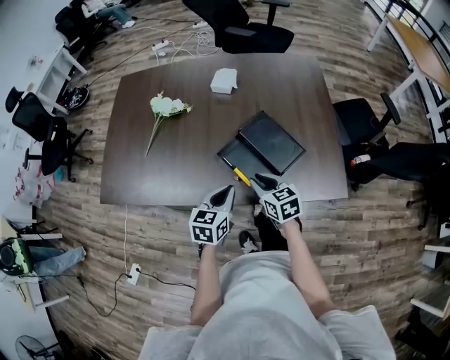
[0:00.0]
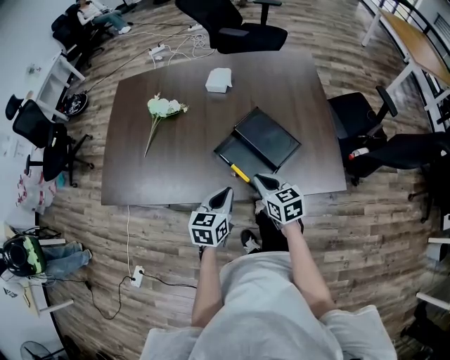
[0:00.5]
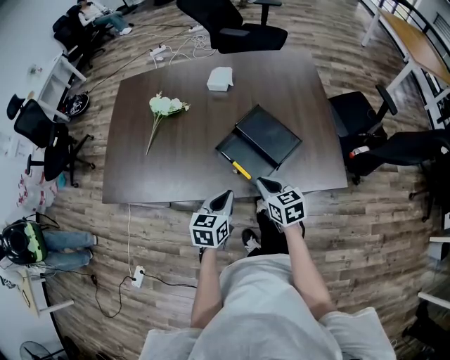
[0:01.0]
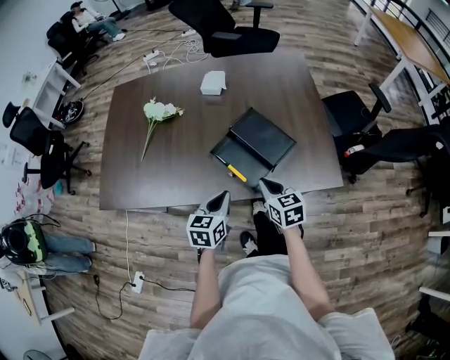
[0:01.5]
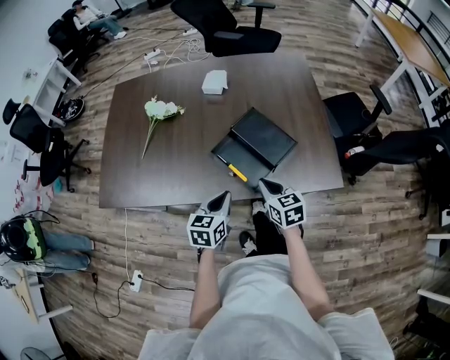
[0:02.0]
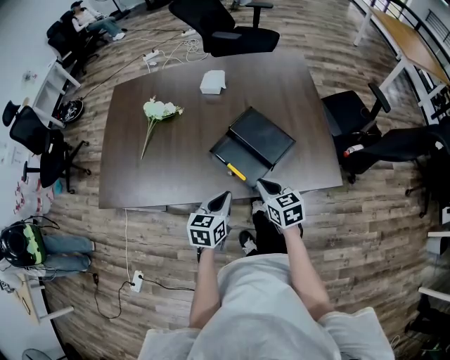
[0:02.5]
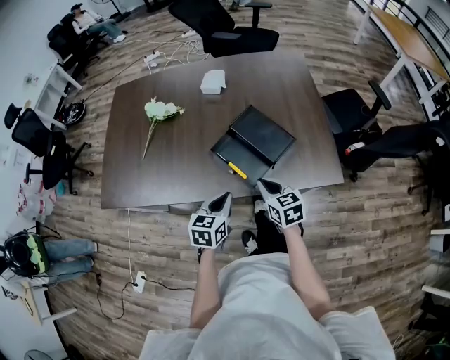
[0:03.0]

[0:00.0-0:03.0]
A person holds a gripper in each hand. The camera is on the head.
0:00.0 to 0:01.5: The right gripper changes place by some 5 cm.
0:01.5 to 0:03.0: There are only small adjustments of the grippers.

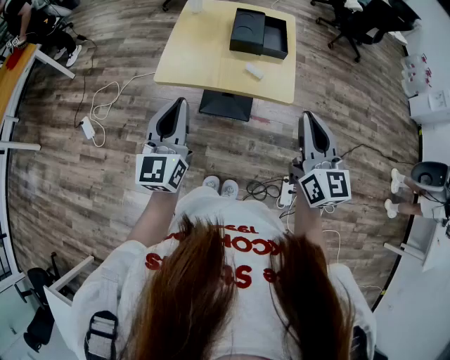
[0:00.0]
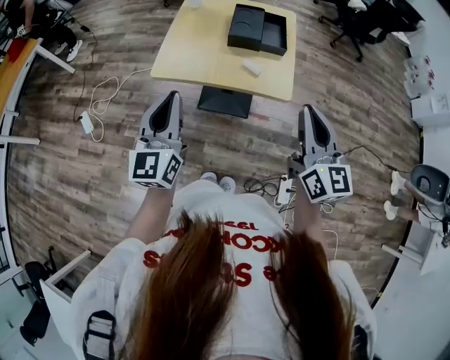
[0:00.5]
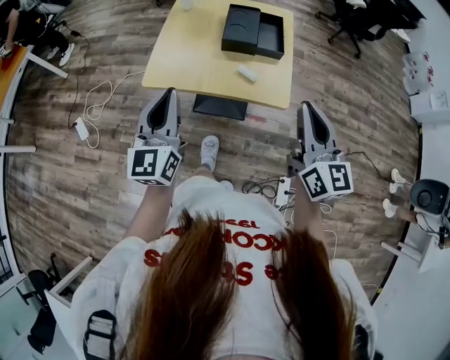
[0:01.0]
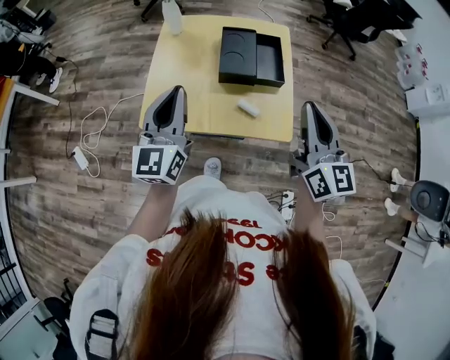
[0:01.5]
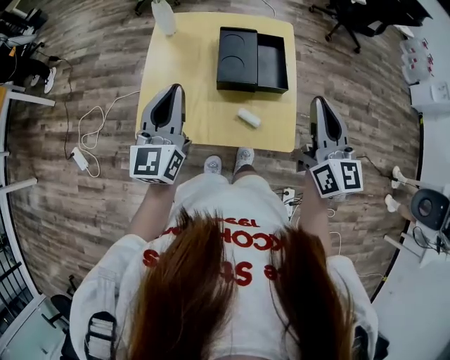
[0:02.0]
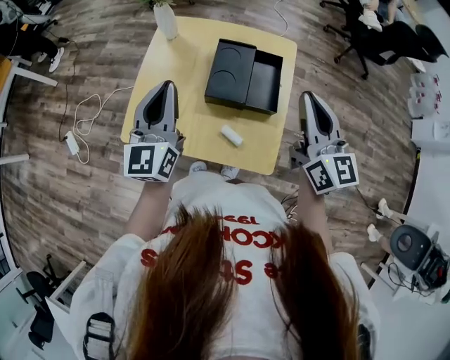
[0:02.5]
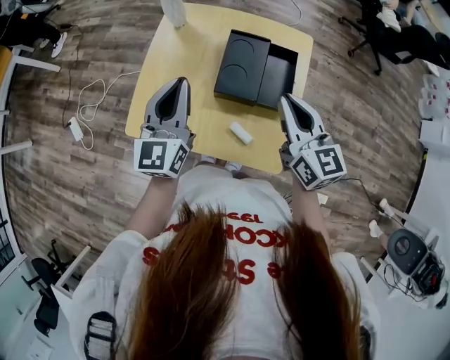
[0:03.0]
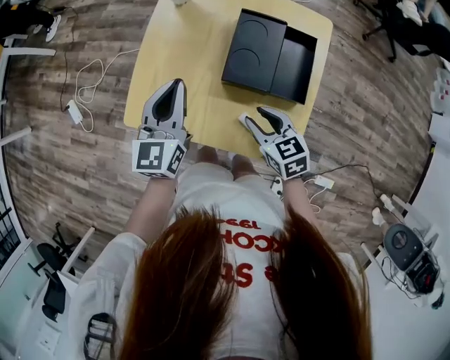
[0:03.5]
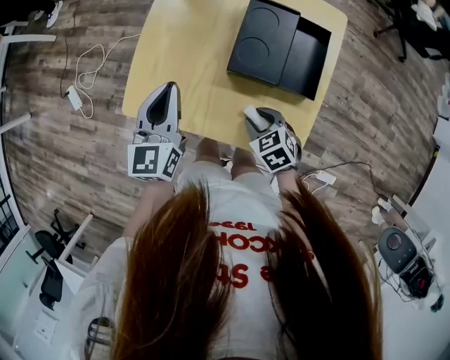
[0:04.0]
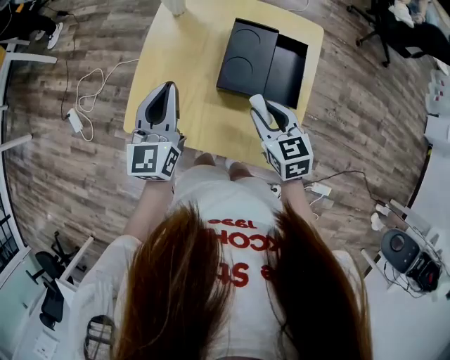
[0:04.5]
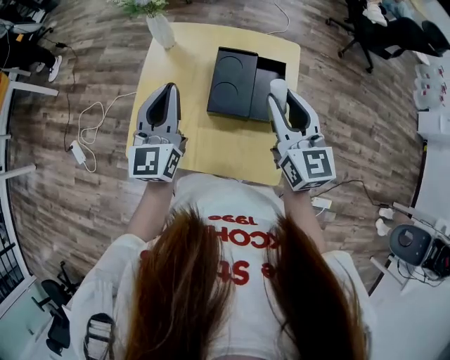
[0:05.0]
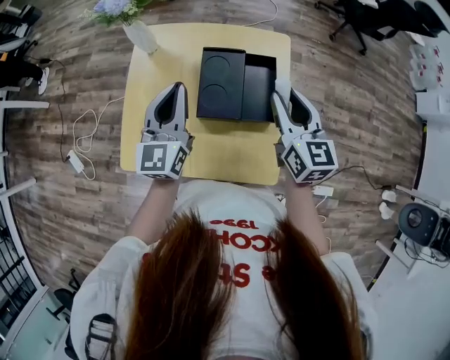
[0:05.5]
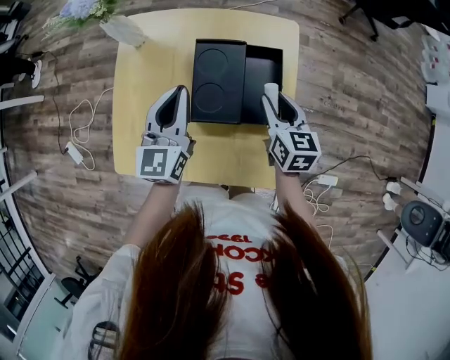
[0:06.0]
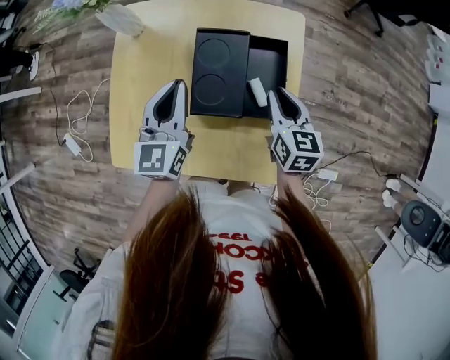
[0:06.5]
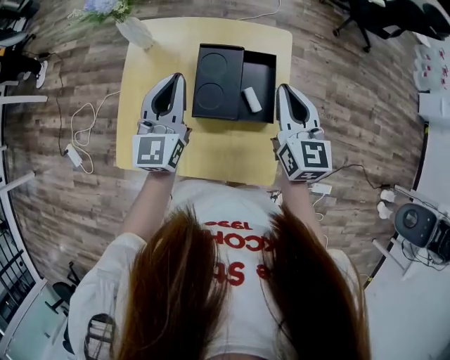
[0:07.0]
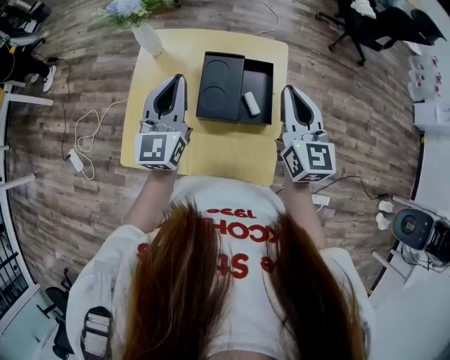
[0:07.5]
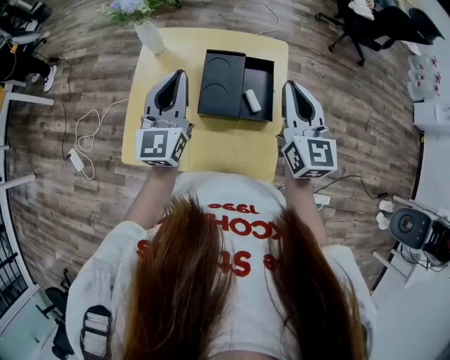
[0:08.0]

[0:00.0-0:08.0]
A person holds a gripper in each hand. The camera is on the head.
0:00.0 to 0:02.0: Both grippers move forward, roughly 25 cm.
0:02.0 to 0:04.0: The right gripper travels downward by about 35 cm, angles its fingers downward, by some 60 degrees, and opens, while the left gripper is displaced downward by approximately 10 cm, and turns by about 20 degrees.
0:04.0 to 0:06.0: The left gripper travels upward and back again, approximately 10 cm each way, while the right gripper moves approximately 20 cm, and changes its angle by about 50 degrees.
0:06.0 to 0:08.0: The left gripper moves upward, approximately 10 cm. The right gripper shifts some 20 cm upward, swivels some 30 degrees, and closes its fingers.

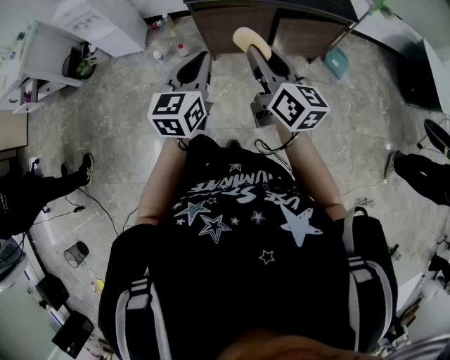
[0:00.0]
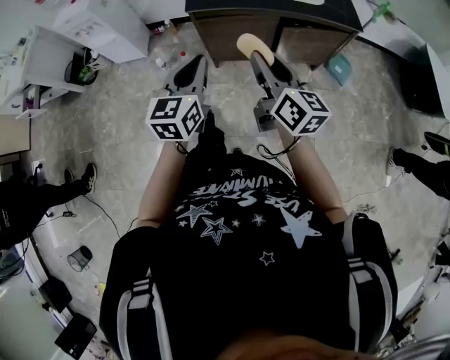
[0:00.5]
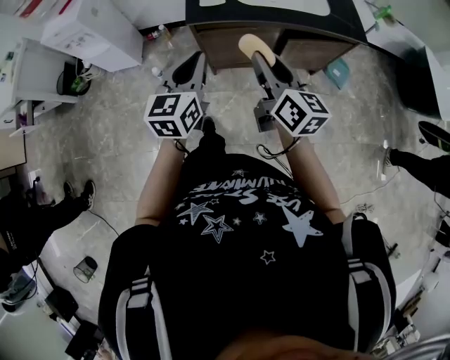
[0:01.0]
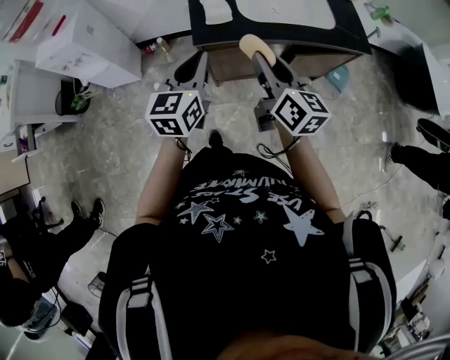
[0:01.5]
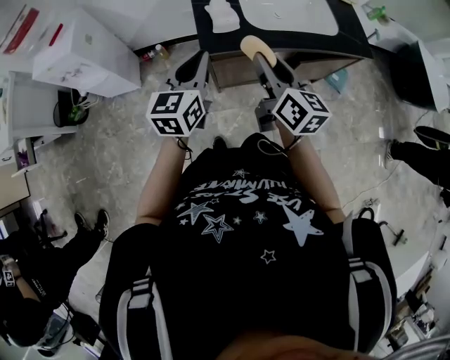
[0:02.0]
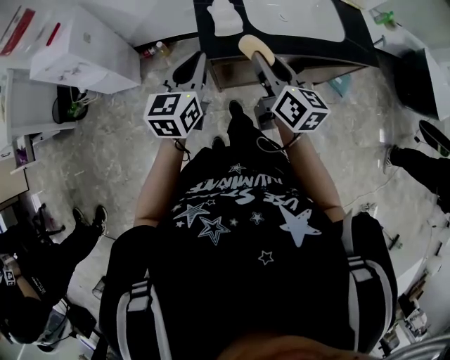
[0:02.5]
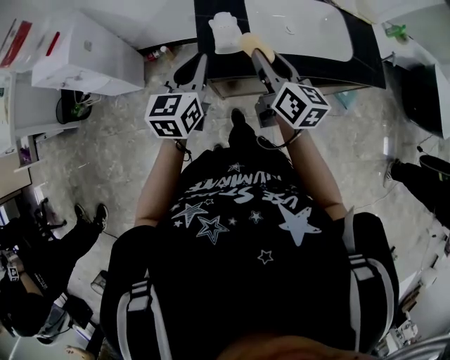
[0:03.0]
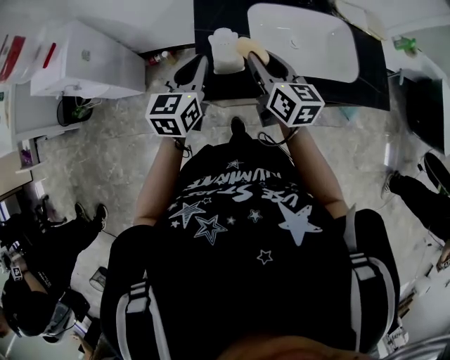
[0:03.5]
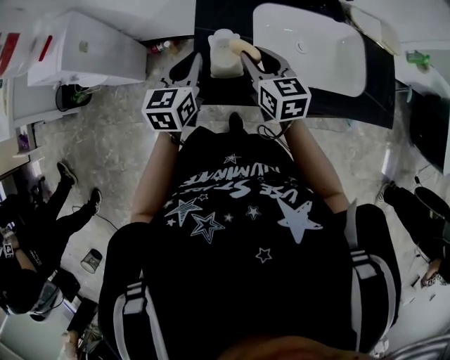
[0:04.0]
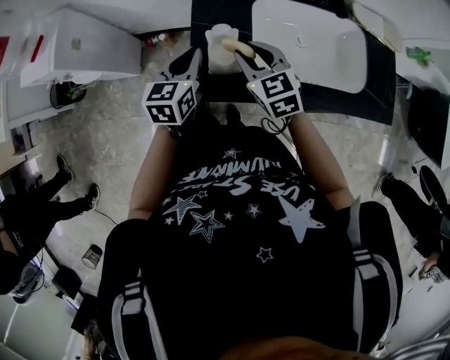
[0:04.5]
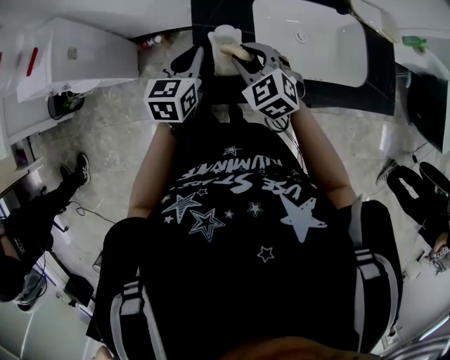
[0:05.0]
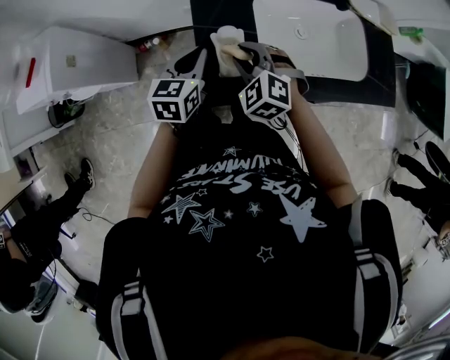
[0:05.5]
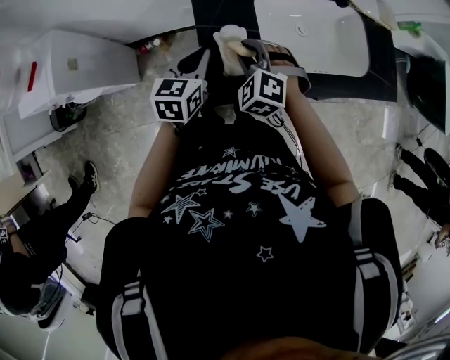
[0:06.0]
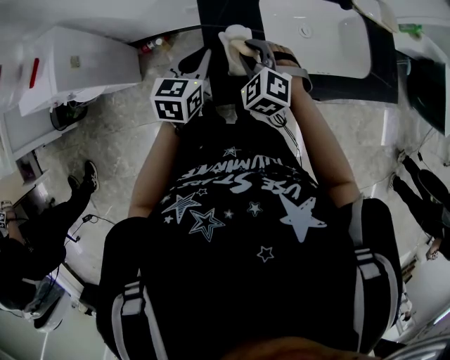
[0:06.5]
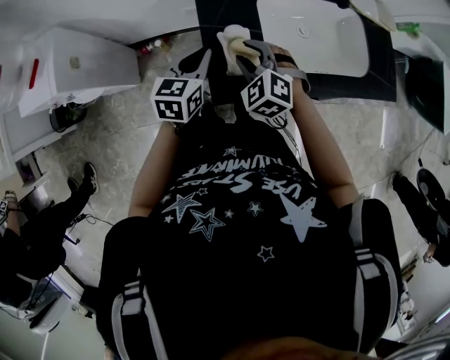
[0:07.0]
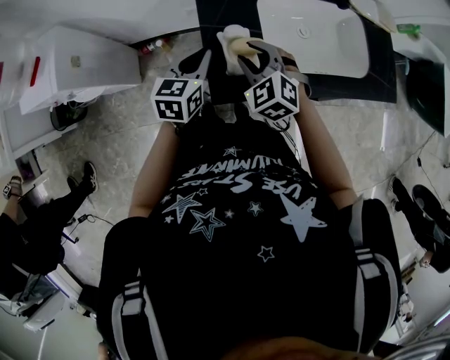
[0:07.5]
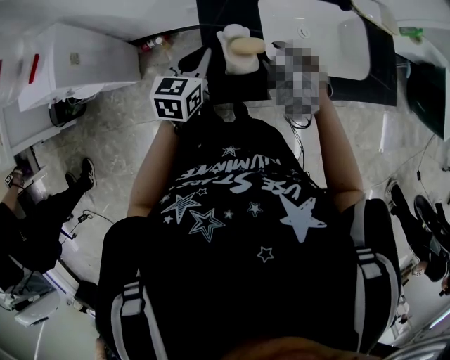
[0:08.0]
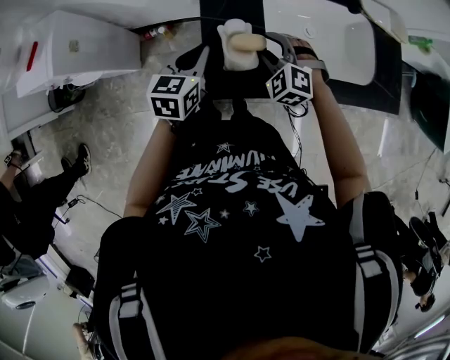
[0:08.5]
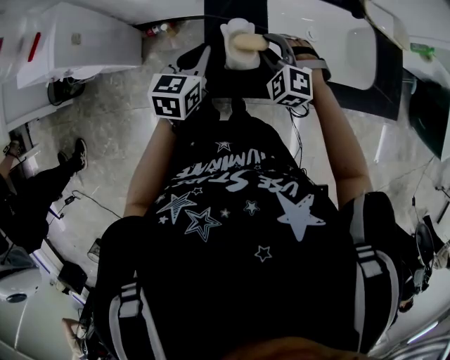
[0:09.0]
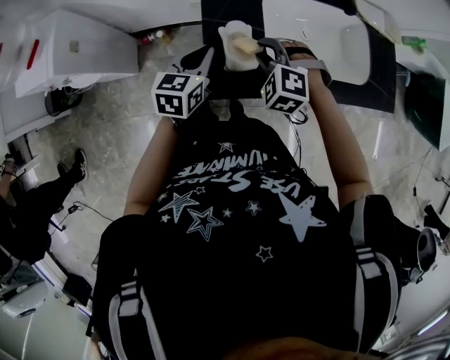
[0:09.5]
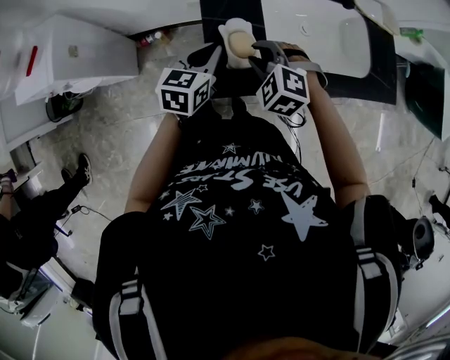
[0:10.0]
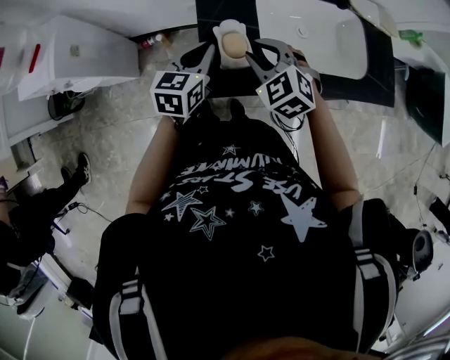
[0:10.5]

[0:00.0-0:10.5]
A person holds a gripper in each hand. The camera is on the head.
0:00.0 to 0:02.0: Both grippers move forward, approximately 25 cm.
0:02.0 to 0:04.0: The right gripper moves forward and downward, some 30 cm, and swivels approximately 30 degrees. The left gripper is displaced forward by roughly 20 cm.
0:04.0 to 0:06.5: The right gripper goes approximately 5 cm to the left, and rolls counterclockwise, seen from behind, by roughly 50 degrees.
0:06.5 to 0:08.5: The right gripper moves to the right, some 5 cm.
0:08.5 to 0:10.5: The right gripper heads upward, covering approximately 5 cm, and changes its angle by approximately 20 degrees.

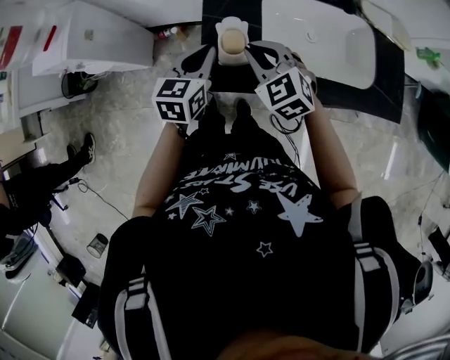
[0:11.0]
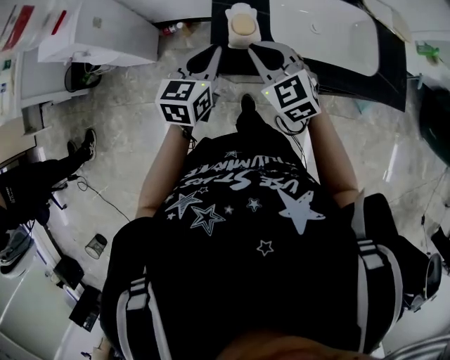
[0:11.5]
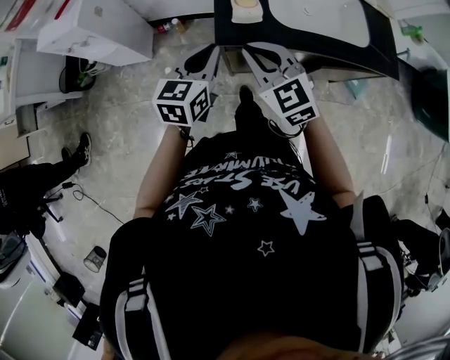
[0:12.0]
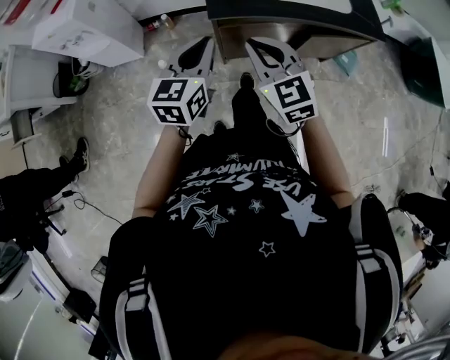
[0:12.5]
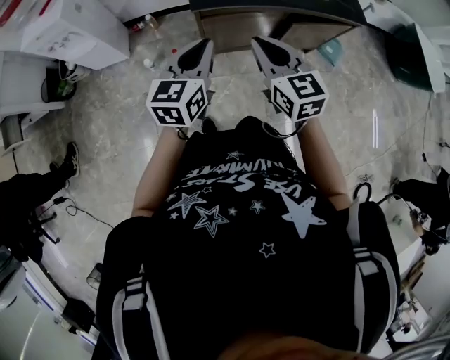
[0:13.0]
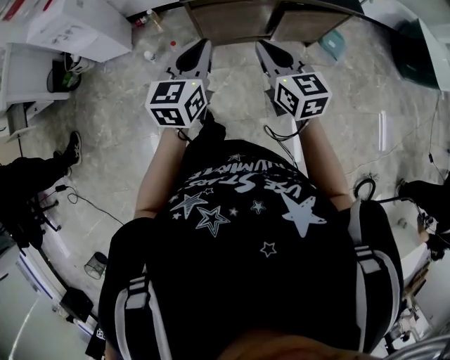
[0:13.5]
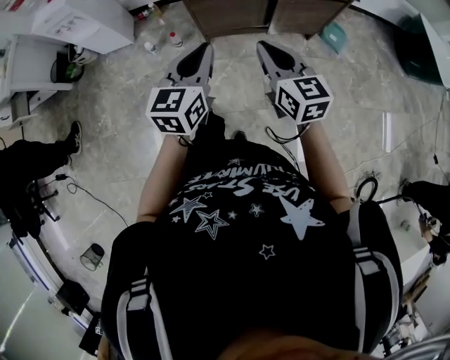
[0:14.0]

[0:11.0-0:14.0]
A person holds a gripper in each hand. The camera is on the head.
0:11.0 to 0:12.5: Both grippers travel together backward, roughly 25 cm.
0:12.5 to 0:14.0: The two grippers go approximately 25 cm backward and to the right. The right gripper turns by approximately 30 degrees.

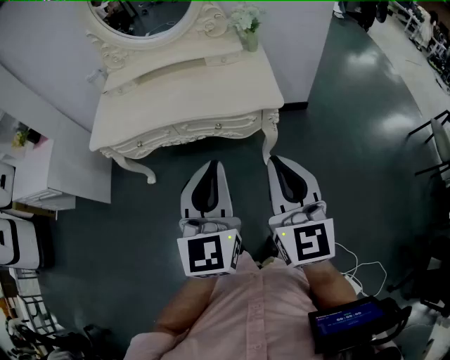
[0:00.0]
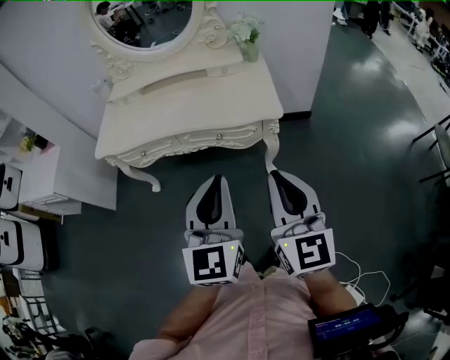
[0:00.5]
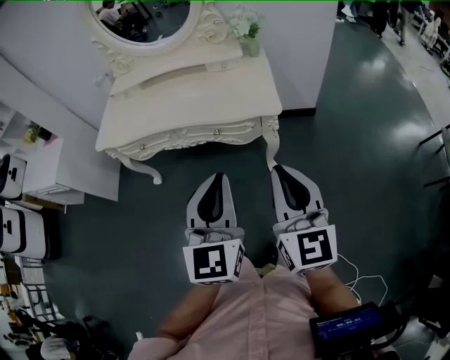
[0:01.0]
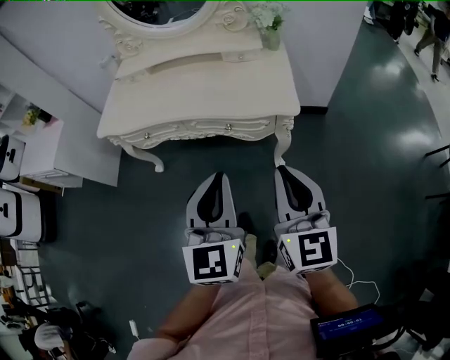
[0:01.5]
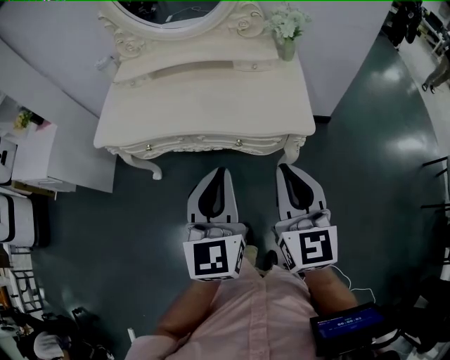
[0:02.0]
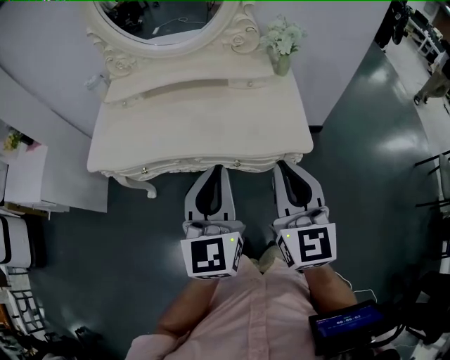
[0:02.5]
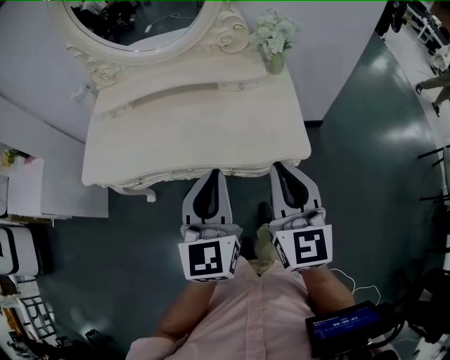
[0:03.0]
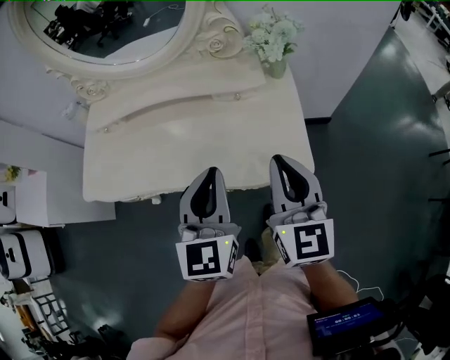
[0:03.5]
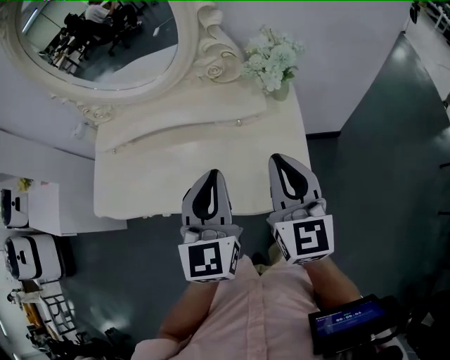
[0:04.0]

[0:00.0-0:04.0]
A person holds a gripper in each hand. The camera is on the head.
0:00.0 to 0:02.0: The grippers both shift forward by roughly 15 cm.
0:02.0 to 0:04.0: The grippers both shift forward by about 30 cm.
